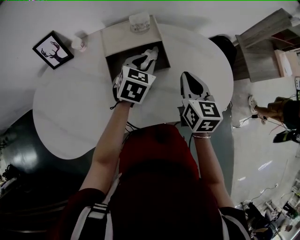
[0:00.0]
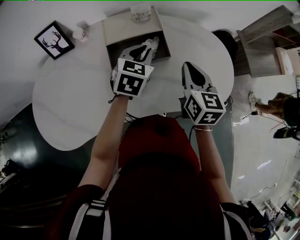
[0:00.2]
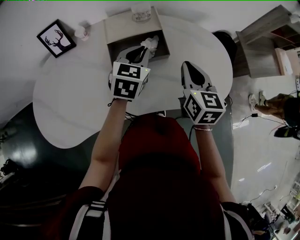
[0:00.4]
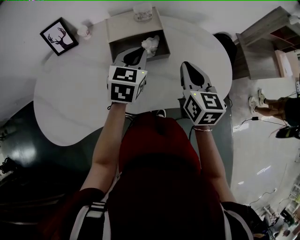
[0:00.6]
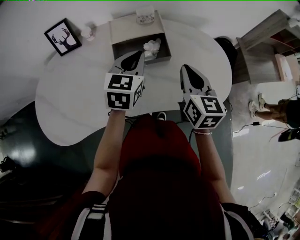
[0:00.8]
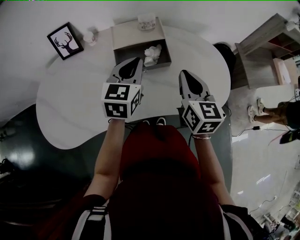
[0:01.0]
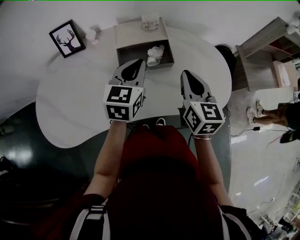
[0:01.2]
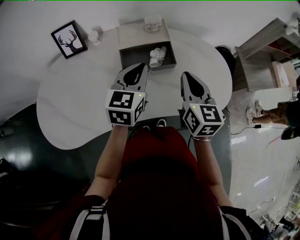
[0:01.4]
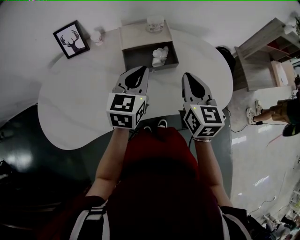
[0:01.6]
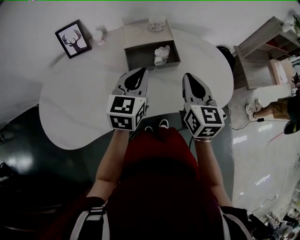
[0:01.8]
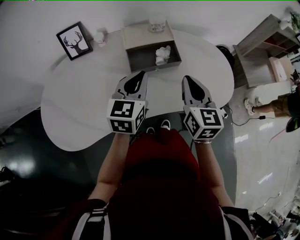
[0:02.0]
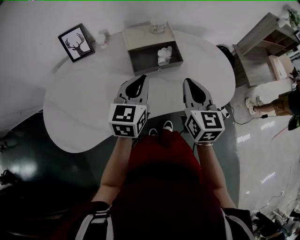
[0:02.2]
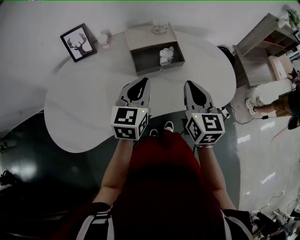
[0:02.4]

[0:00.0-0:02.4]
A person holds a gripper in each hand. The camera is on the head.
0:00.0 to 0:01.2: The left gripper is displaced upward and backward by roughly 10 cm, and changes its angle by roughly 30 degrees. Meanwhile the right gripper shifts roughly 5 cm upward.
0:01.2 to 0:02.4: The grippers both shift backward by roughly 10 cm.

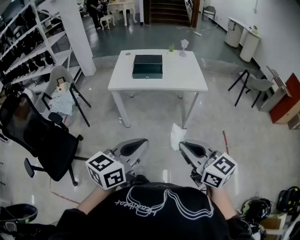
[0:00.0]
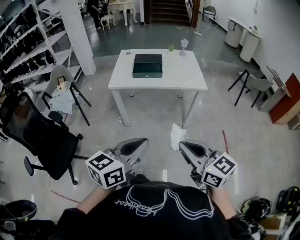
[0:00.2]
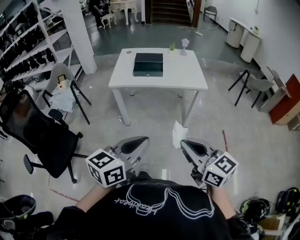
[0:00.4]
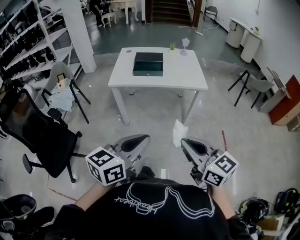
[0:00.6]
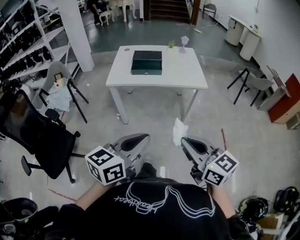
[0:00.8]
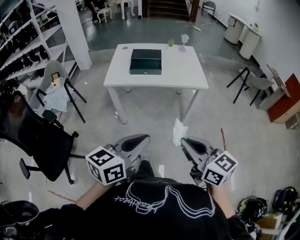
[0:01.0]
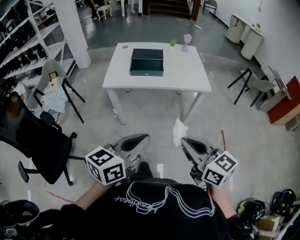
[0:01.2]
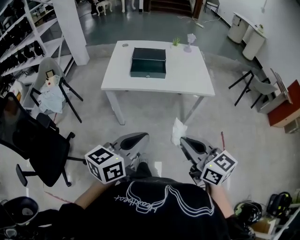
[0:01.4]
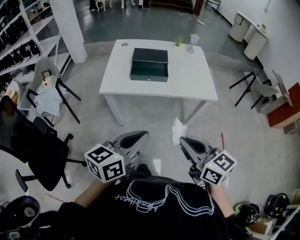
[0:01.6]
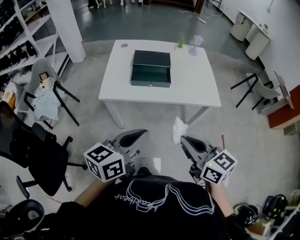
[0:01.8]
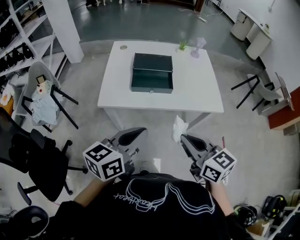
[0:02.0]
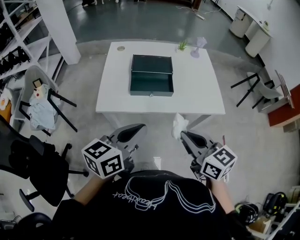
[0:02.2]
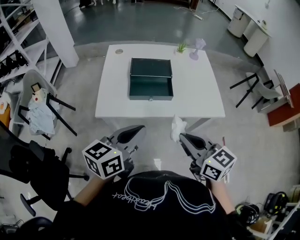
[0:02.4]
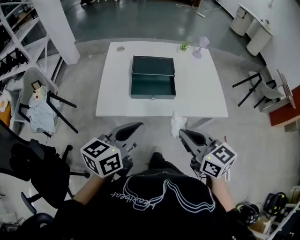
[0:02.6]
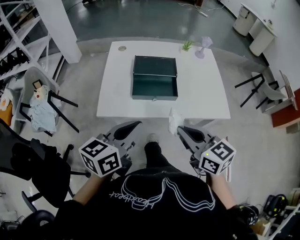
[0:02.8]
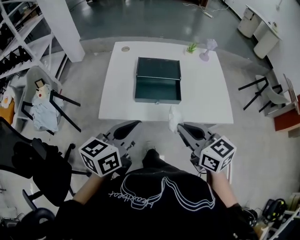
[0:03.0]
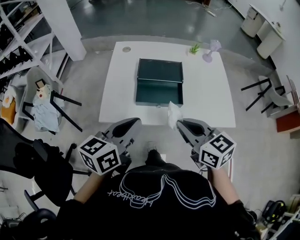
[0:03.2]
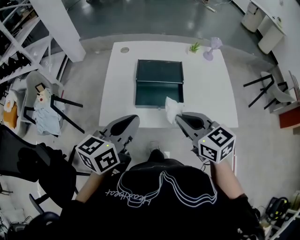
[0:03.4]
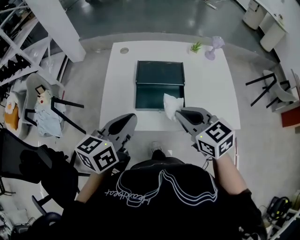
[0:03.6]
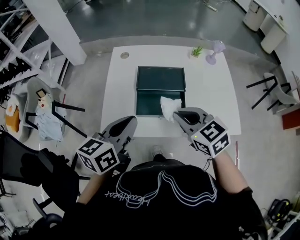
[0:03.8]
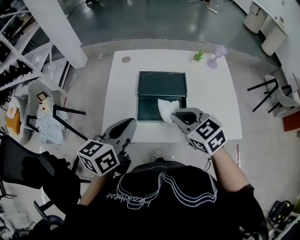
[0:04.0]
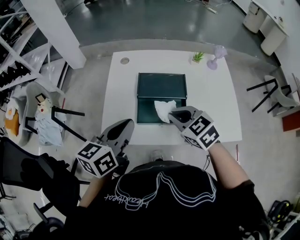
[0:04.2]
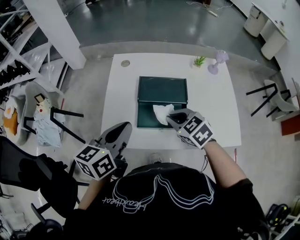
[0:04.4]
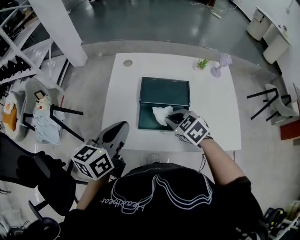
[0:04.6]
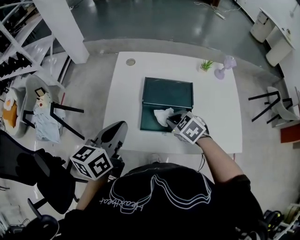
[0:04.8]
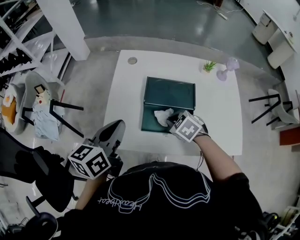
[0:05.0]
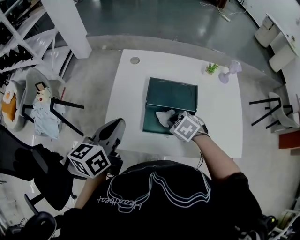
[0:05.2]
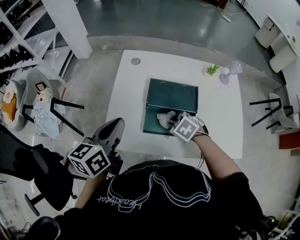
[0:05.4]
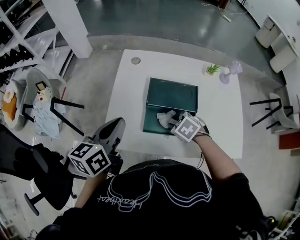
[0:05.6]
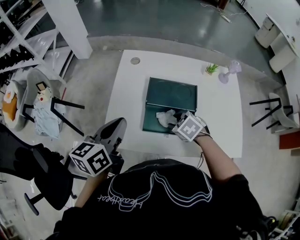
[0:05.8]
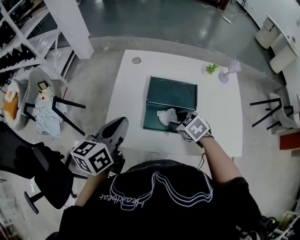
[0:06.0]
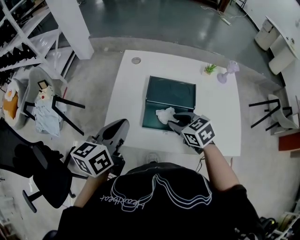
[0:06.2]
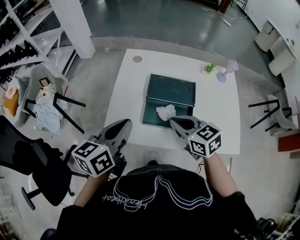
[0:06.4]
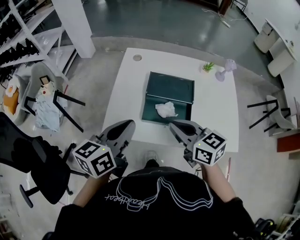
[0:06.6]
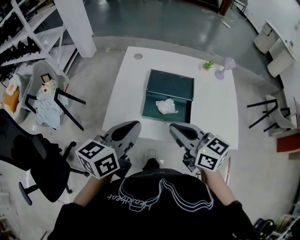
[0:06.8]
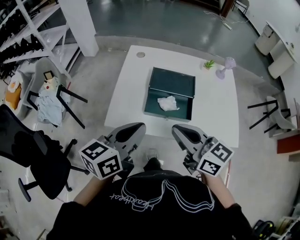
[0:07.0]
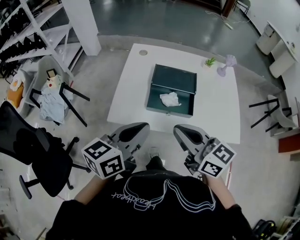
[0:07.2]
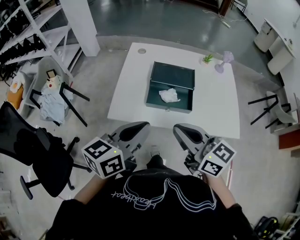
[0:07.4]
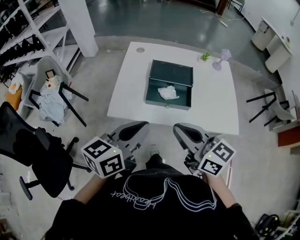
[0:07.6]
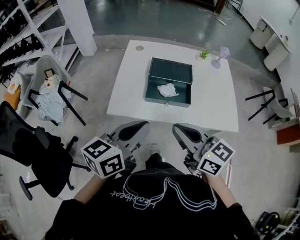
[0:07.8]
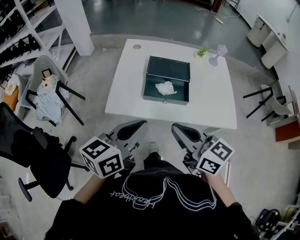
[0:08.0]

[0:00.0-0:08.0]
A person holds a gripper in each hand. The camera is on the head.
0:00.0 to 0:01.6: The two grippers go approximately 20 cm forward.
0:01.6 to 0:03.2: Both grippers travel together forward, about 30 cm.
0:03.2 to 0:04.8: The right gripper heads forward and downward, covering roughly 25 cm, and tilts its fingers some 40 degrees downward; the left gripper travels forward and to the left by approximately 15 cm.
0:04.8 to 0:06.4: The right gripper is displaced upward by roughly 10 cm, rotates some 30 degrees, and opens, then closes again.
0:06.4 to 0:08.0: The right gripper shifts some 20 cm backward and upward, and swivels approximately 20 degrees, while the left gripper travels backward by roughly 15 cm.

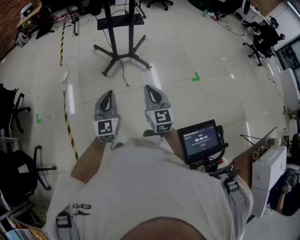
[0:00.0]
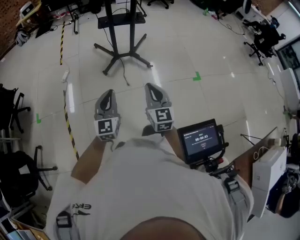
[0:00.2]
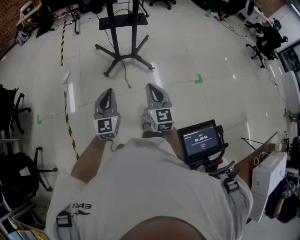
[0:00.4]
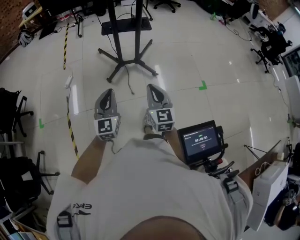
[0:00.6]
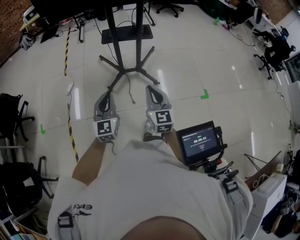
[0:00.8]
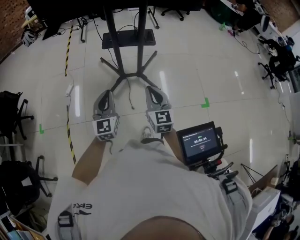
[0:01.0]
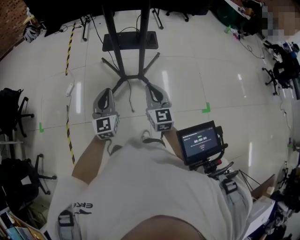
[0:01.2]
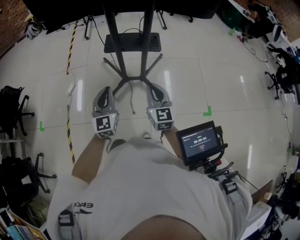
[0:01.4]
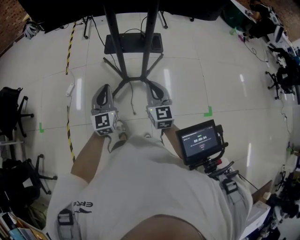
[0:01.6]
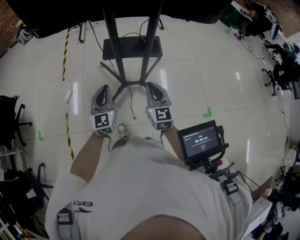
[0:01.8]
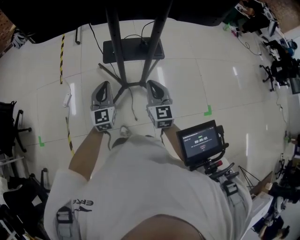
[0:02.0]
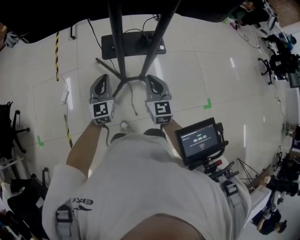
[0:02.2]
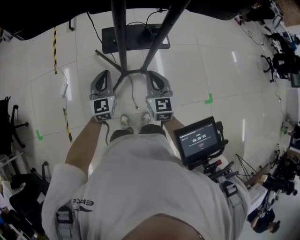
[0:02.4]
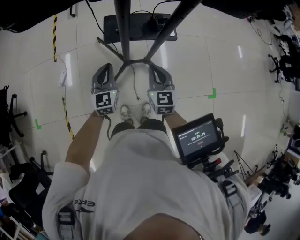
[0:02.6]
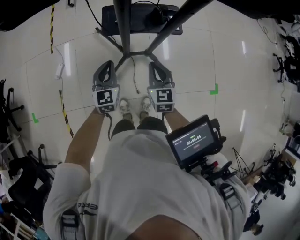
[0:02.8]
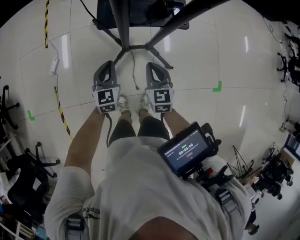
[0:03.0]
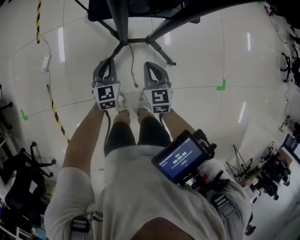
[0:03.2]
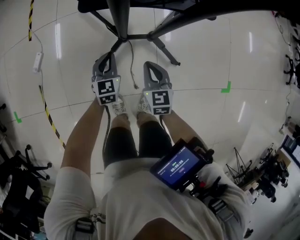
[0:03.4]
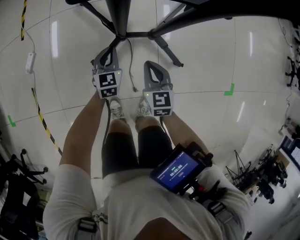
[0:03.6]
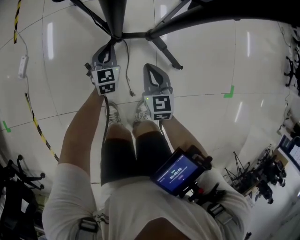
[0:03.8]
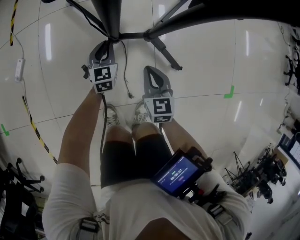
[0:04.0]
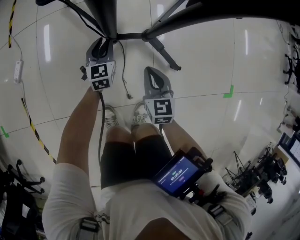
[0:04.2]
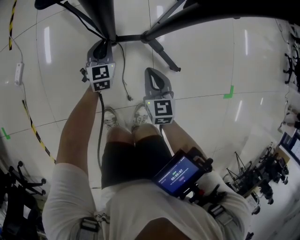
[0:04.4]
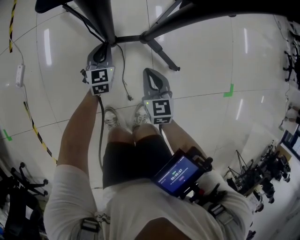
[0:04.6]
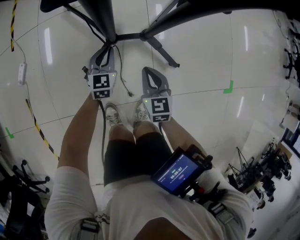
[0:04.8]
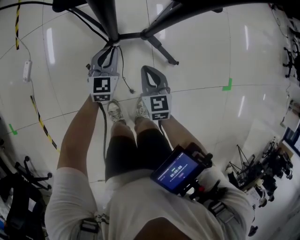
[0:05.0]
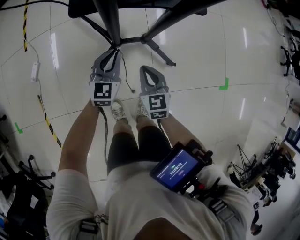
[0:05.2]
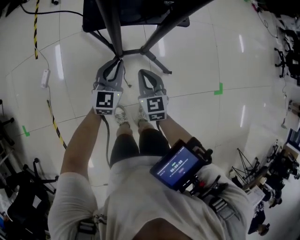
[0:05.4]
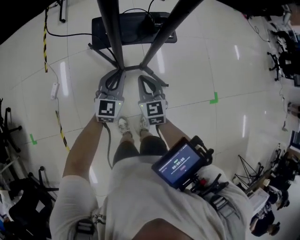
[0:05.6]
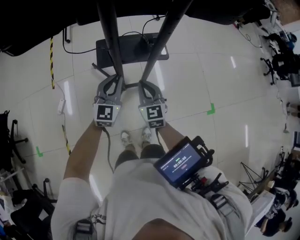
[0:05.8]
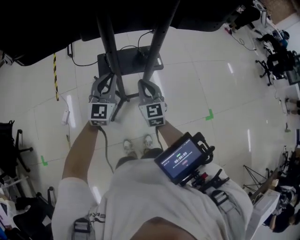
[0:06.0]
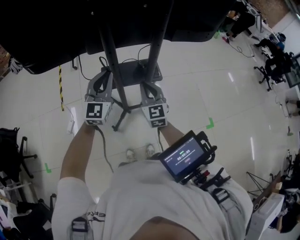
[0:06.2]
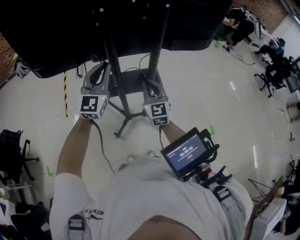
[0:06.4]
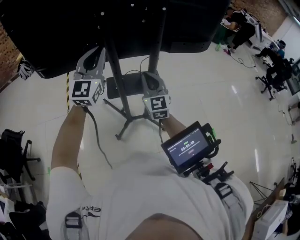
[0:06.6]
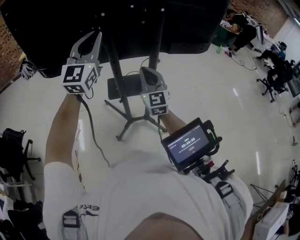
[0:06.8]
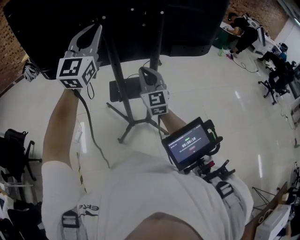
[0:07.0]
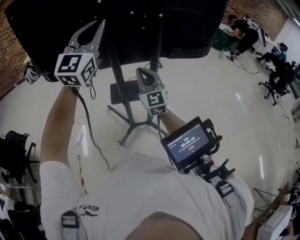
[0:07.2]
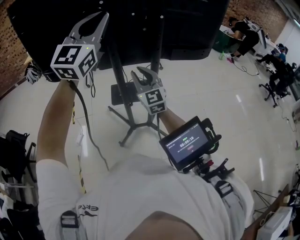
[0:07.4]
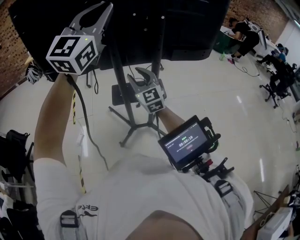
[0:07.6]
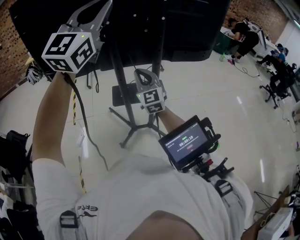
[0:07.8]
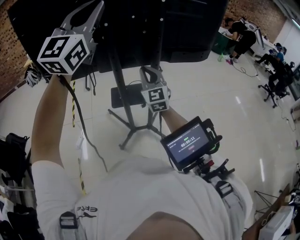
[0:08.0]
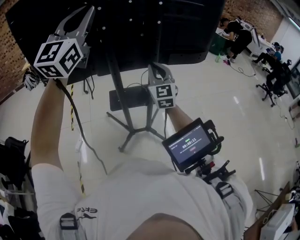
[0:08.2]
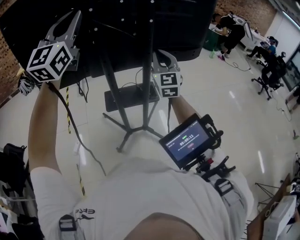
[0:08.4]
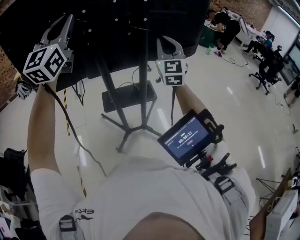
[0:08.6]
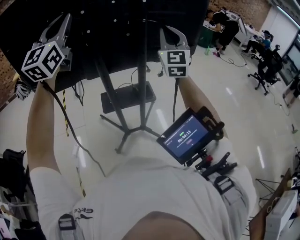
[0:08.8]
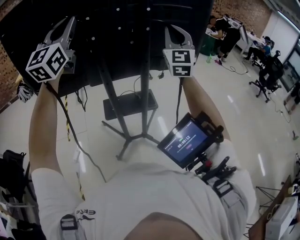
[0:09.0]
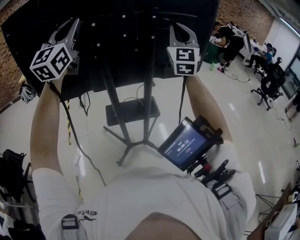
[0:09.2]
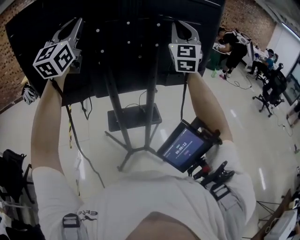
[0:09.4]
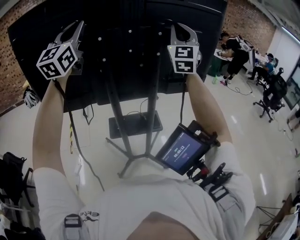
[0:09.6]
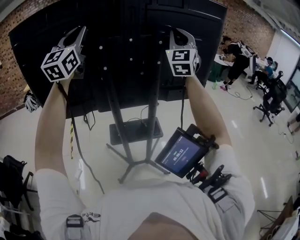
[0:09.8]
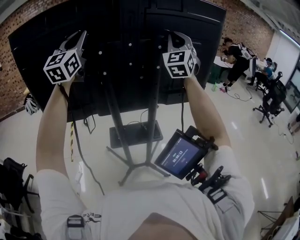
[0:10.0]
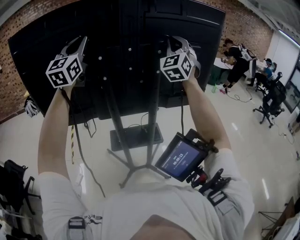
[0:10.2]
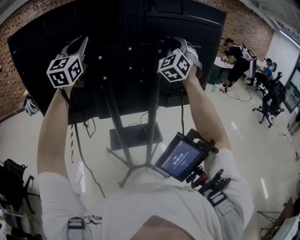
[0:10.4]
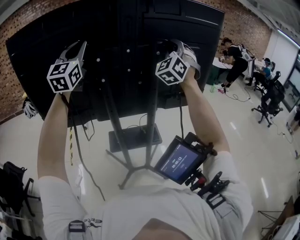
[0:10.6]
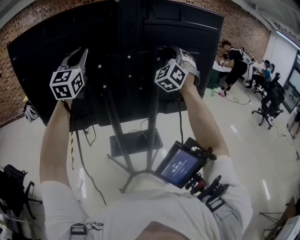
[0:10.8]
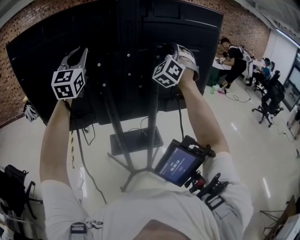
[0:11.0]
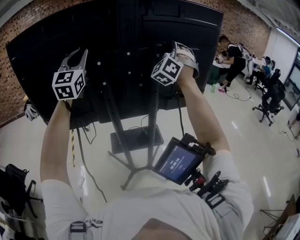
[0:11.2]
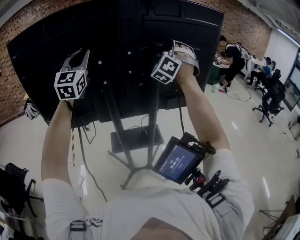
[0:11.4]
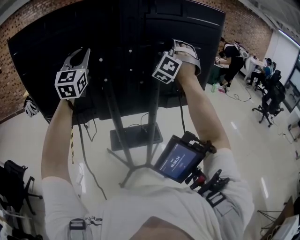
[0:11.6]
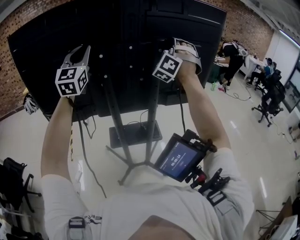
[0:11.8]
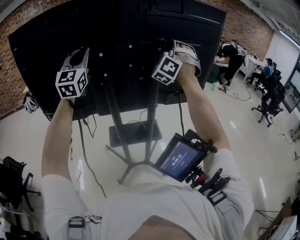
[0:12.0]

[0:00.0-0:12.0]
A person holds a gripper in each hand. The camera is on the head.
0:00.0 to 0:01.6: The pair of grippers is taken forward, some 40 cm.
0:01.6 to 0:03.0: Both grippers travel together downward and forward, about 30 cm. The left gripper changes its angle by roughly 20 degrees.
0:03.0 to 0:04.4: The grippers both shift downward by about 35 cm.
0:04.4 to 0:06.0: Both grippers travel together upward, some 60 cm. The right gripper turns by roughly 30 degrees; the left gripper rotates about 40 degrees.
0:06.0 to 0:07.6: The left gripper moves upward, approximately 50 cm, and turns by approximately 30 degrees. The right gripper shifts some 20 cm upward, rotates about 20 degrees, and opens up.
0:07.6 to 0:09.0: The right gripper is displaced upward and to the right by roughly 30 cm, turns by some 40 degrees, and closes up. Meanwhile the left gripper is displaced to the left by roughly 10 cm.
0:09.0 to 0:10.4: The left gripper is displaced forward by roughly 10 cm. The right gripper goes approximately 15 cm forward and upward, and rotates roughly 30 degrees.
0:10.4 to 0:12.0: The right gripper turns by approximately 30 degrees. The left gripper is displaced downward by some 5 cm.

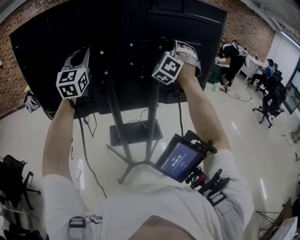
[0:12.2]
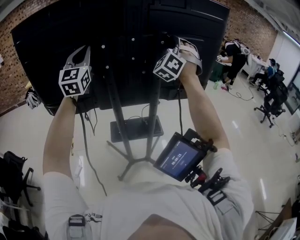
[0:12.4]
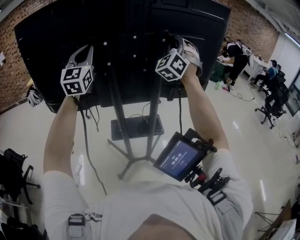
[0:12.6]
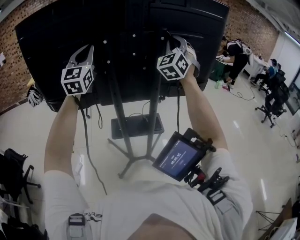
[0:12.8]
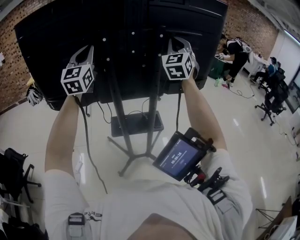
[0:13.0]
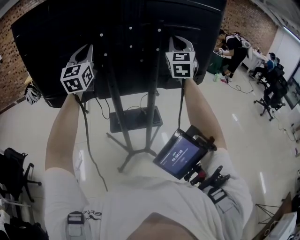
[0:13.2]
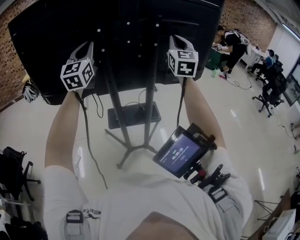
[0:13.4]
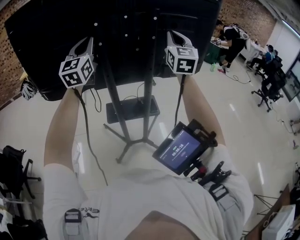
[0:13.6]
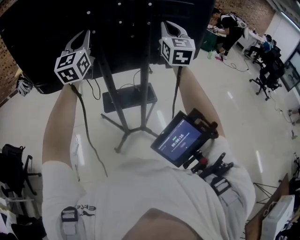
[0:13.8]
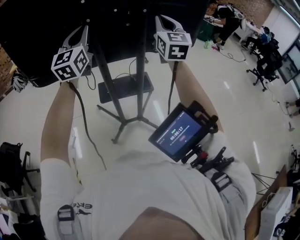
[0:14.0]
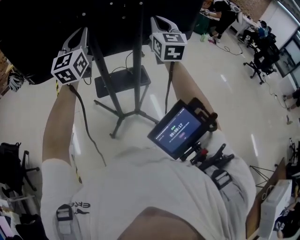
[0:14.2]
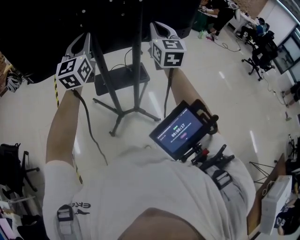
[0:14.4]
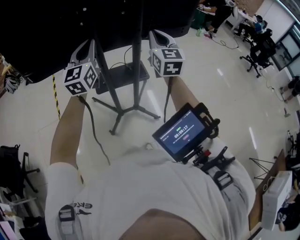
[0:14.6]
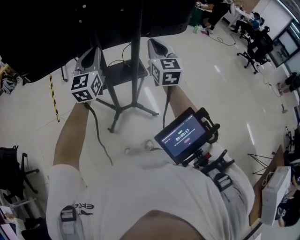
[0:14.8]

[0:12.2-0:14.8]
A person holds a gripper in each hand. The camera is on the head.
0:12.2 to 0:13.4: The right gripper goes roughly 10 cm backward, and rolls clockwise, seen from behind, by some 60 degrees. Meanwhile the left gripper is displaced backward and downward by about 10 cm.
0:13.4 to 0:14.8: The right gripper goes some 20 cm downward and backward. The left gripper travels downward by roughly 20 cm.
